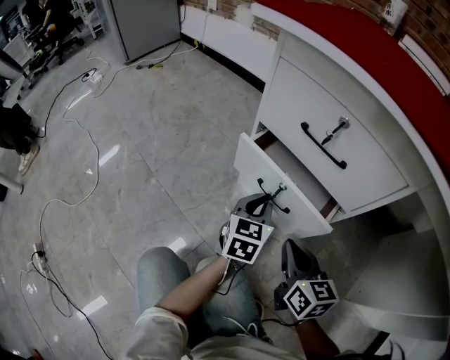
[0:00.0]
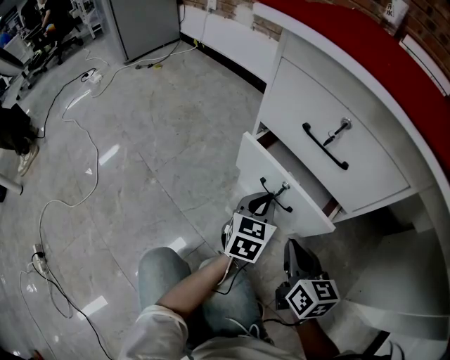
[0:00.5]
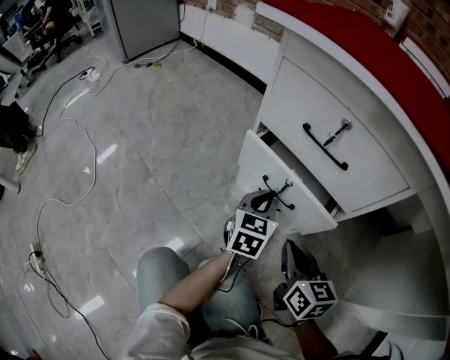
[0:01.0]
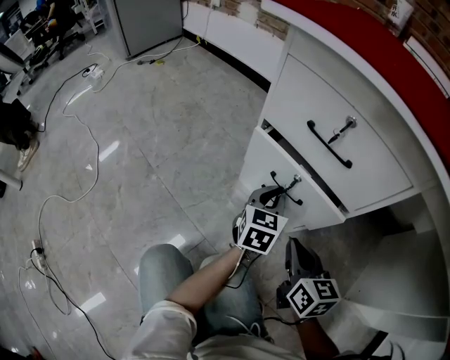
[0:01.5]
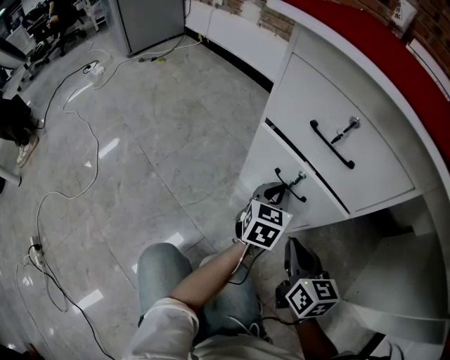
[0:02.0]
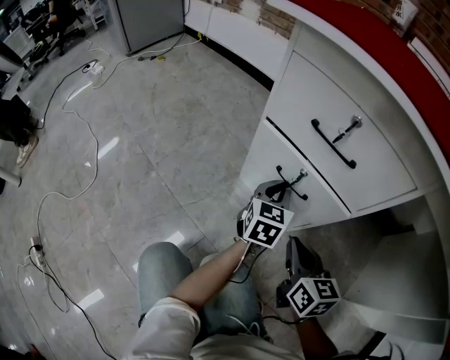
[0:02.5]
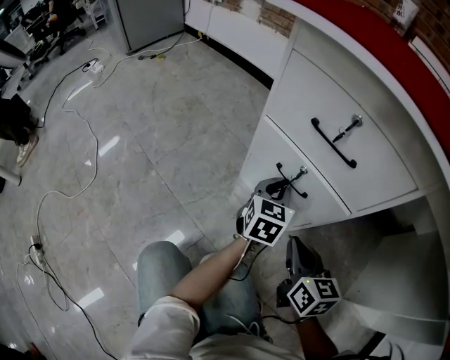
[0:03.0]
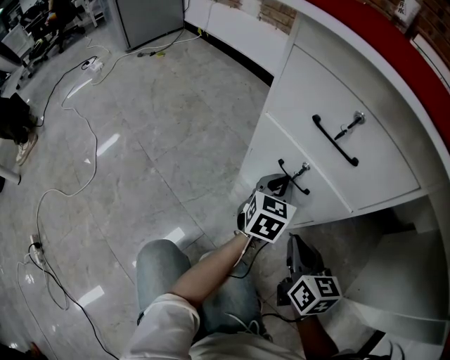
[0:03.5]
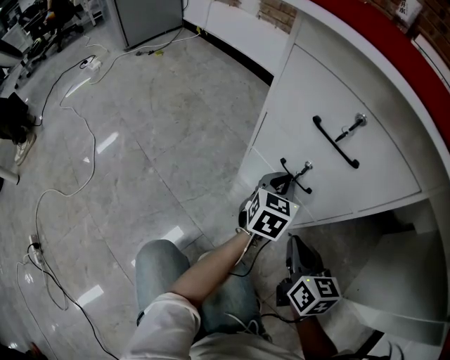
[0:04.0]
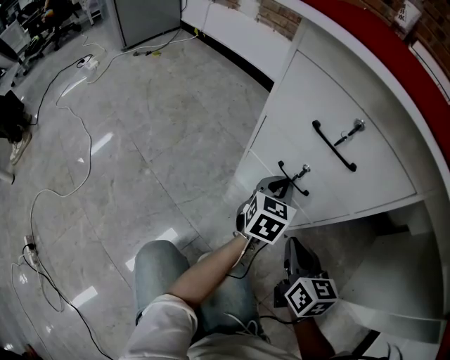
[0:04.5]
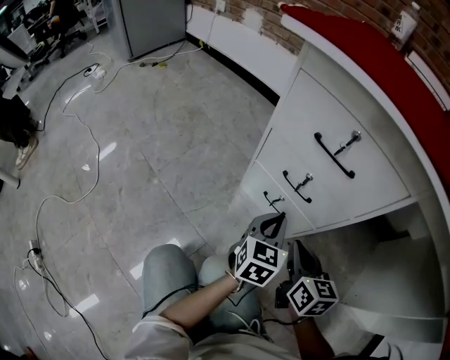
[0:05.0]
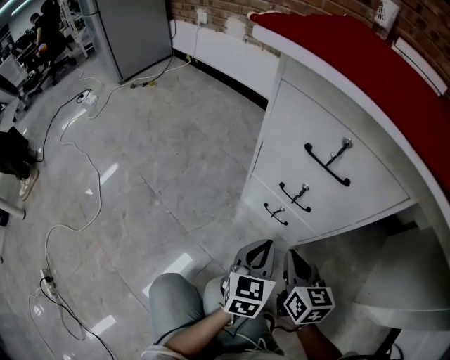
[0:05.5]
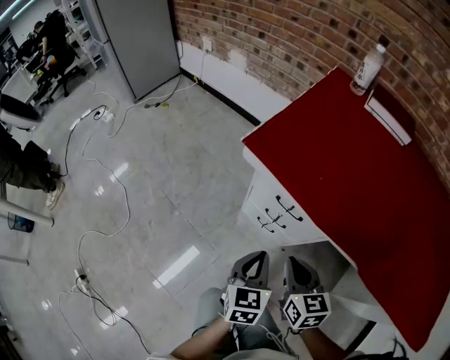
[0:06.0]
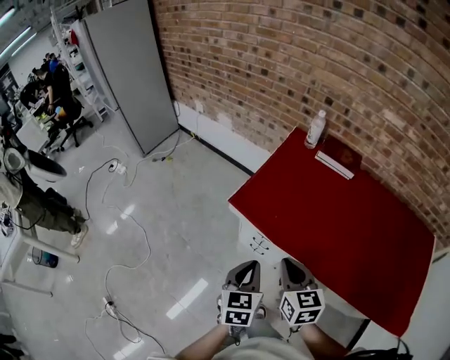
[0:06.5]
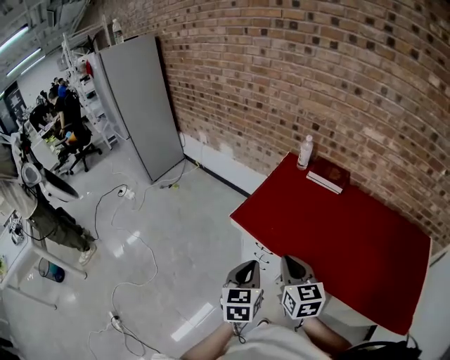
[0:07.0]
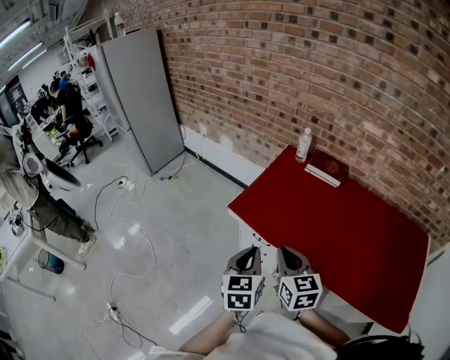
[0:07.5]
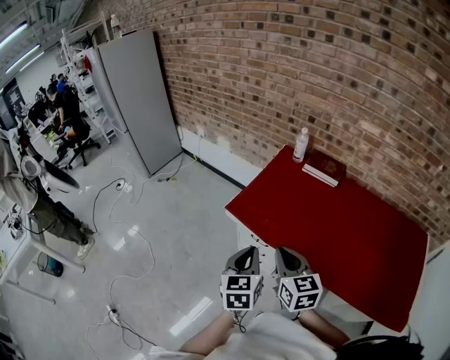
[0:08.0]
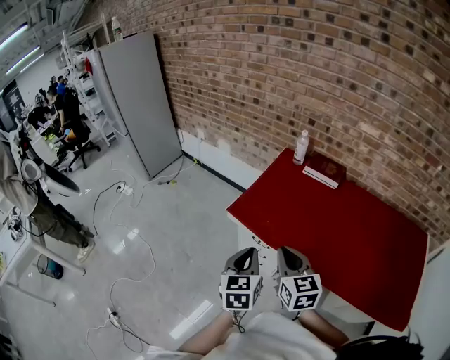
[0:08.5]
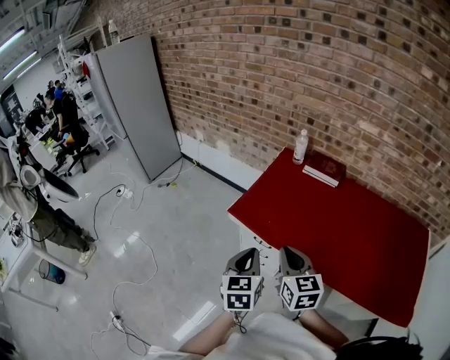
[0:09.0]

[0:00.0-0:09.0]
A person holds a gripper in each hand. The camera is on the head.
0:00.0 to 0:02.0: The grippers stay close to where they were, moving slightly.
0:02.0 to 0:04.5: The grippers move only a little.
0:04.5 to 0:07.0: Both grippers travel together upward, approximately 60 cm.
0:07.0 to 0:09.0: The grippers stay close to where they were, moving slightly.

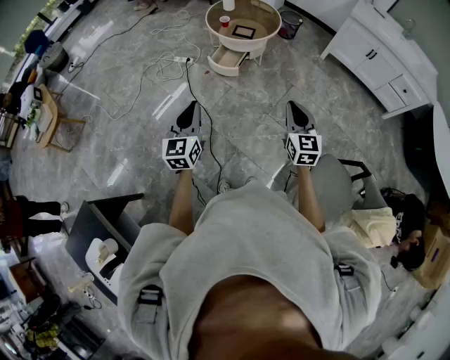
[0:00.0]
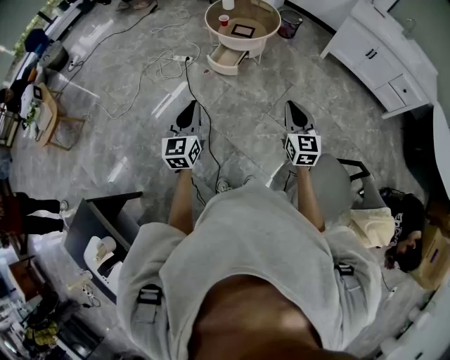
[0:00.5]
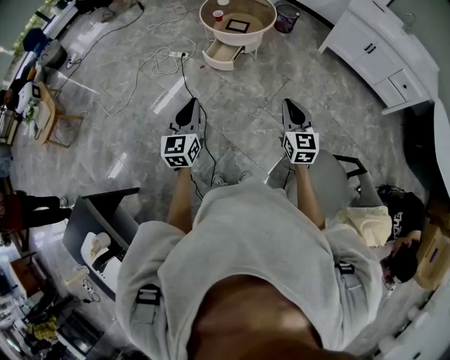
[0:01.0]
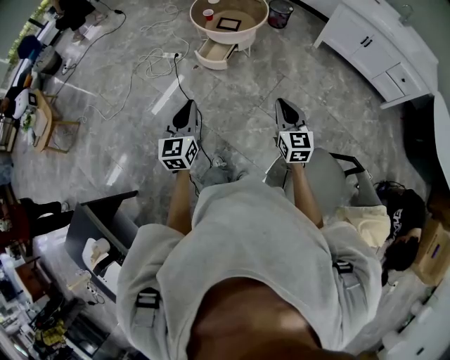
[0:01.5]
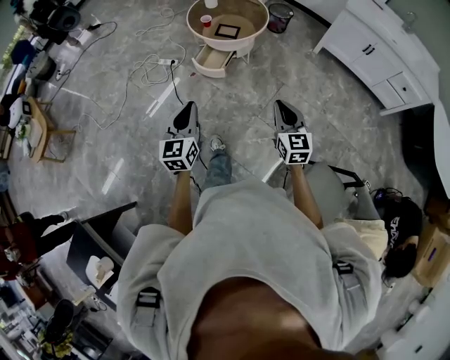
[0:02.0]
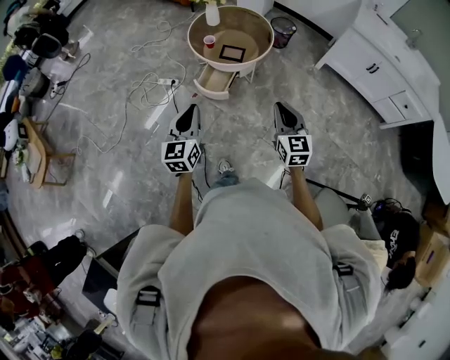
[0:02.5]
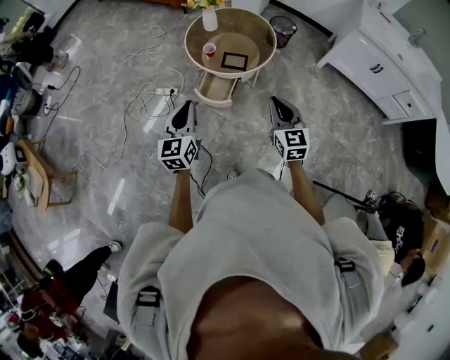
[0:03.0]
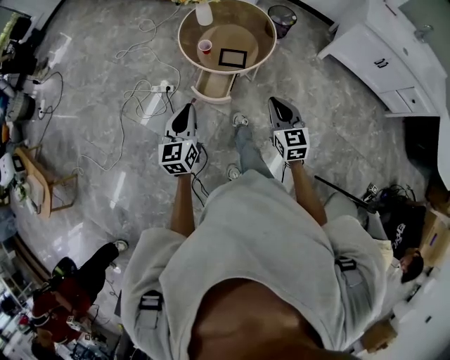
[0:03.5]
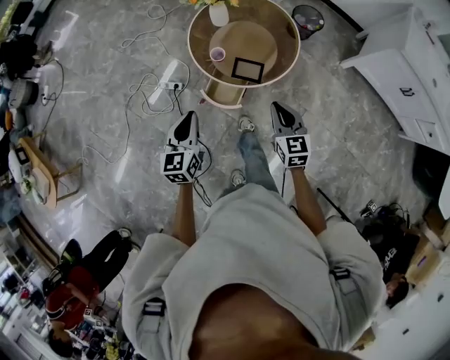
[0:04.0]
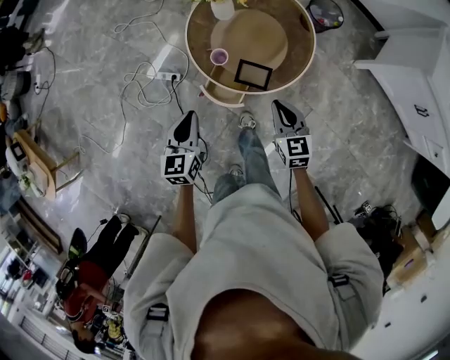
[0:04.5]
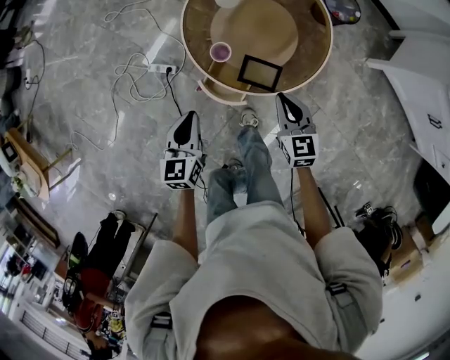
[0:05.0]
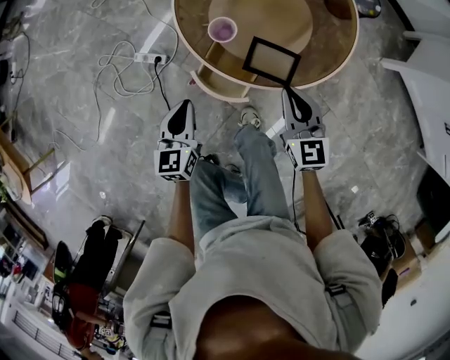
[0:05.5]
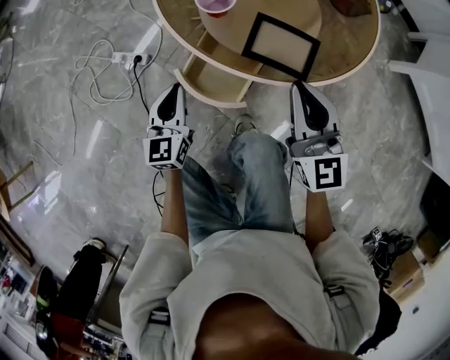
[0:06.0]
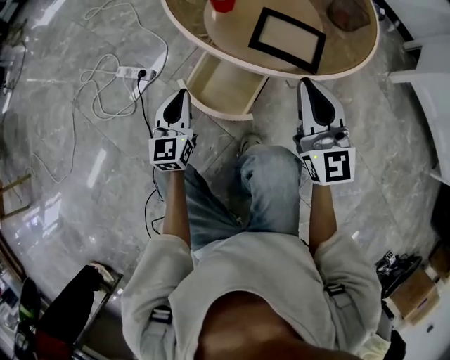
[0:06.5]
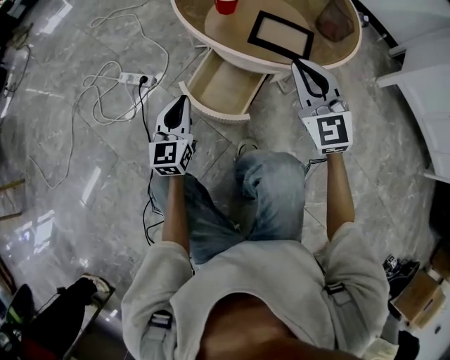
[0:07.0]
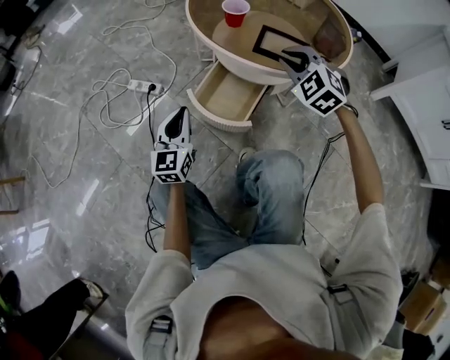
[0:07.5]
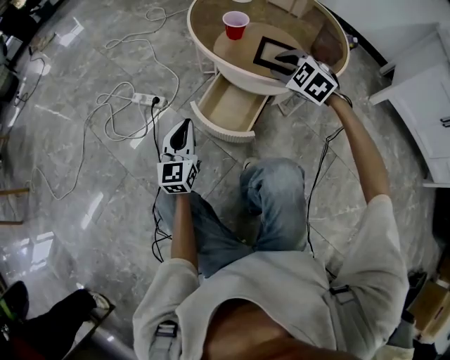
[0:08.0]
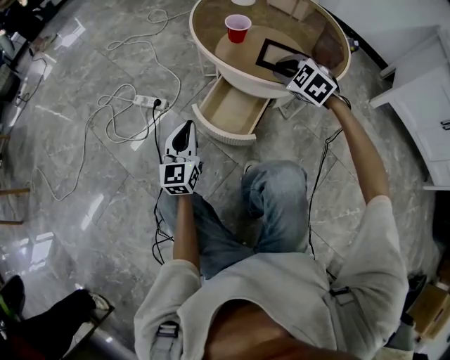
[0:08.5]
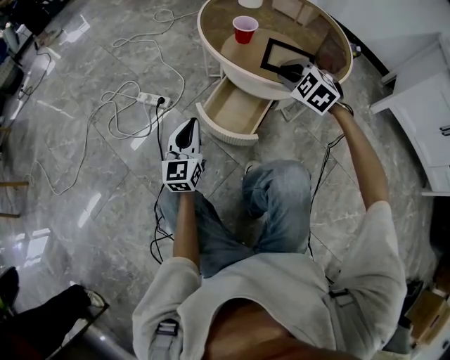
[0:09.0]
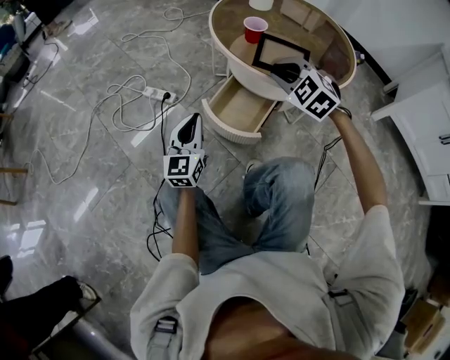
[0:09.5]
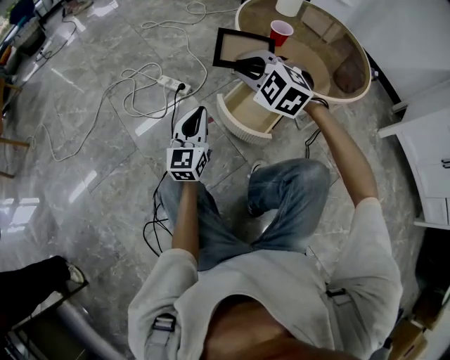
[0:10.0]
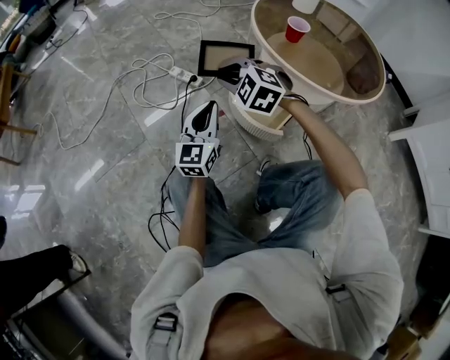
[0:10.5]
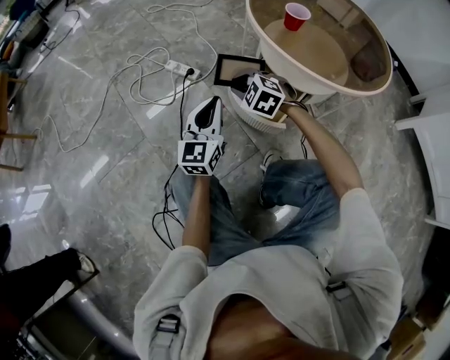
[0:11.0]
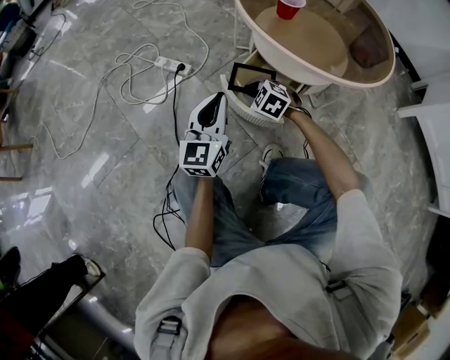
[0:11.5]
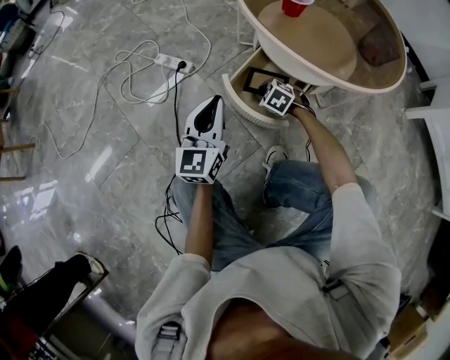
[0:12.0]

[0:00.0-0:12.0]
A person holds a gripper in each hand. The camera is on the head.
0:00.0 to 0:02.0: Both grippers move forward and to the right, some 15 cm.
0:02.0 to 0:04.0: The two grippers travel together, forward, about 60 cm.
0:04.0 to 0:06.0: The two grippers go some 40 cm downward. The right gripper turns by roughly 20 degrees.
0:06.0 to 0:08.0: The left gripper heads backward and to the left, covering roughly 10 cm; the right gripper moves downward, about 10 cm, angles its fingers downward, by about 40 degrees, and opens its fingers.
0:08.0 to 0:10.0: The left gripper goes some 5 cm to the left; the right gripper is displaced to the left by approximately 25 cm, and turns by some 30 degrees.
0:10.0 to 0:12.0: The left gripper travels to the right by roughly 5 cm; the right gripper is displaced downward by about 35 cm, and turns by approximately 40 degrees.

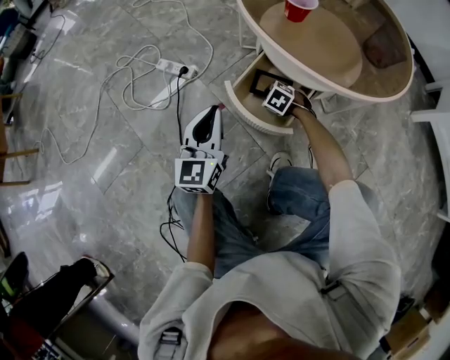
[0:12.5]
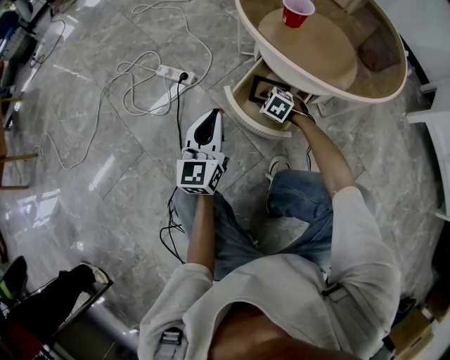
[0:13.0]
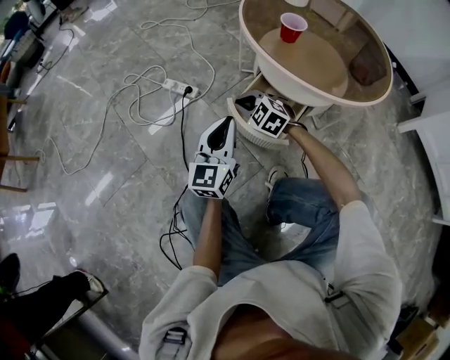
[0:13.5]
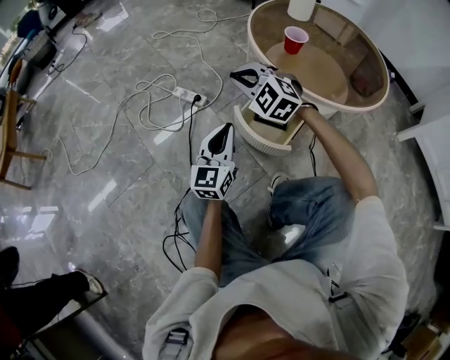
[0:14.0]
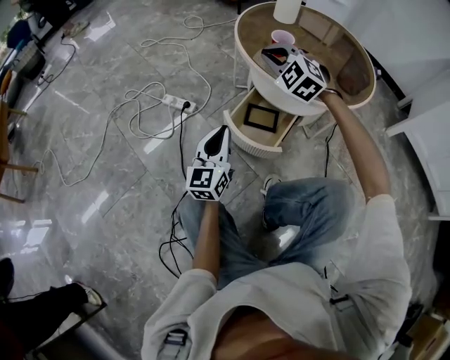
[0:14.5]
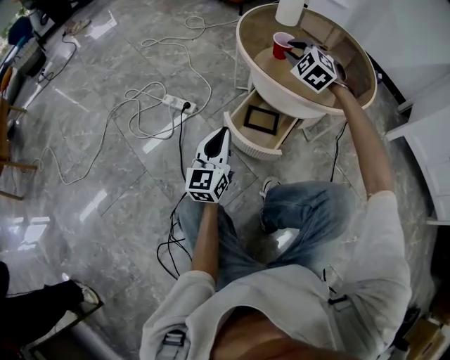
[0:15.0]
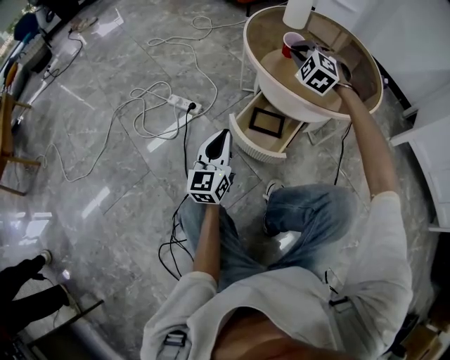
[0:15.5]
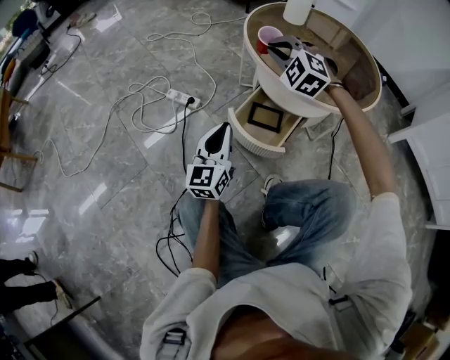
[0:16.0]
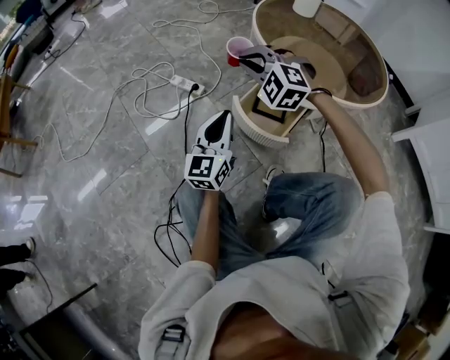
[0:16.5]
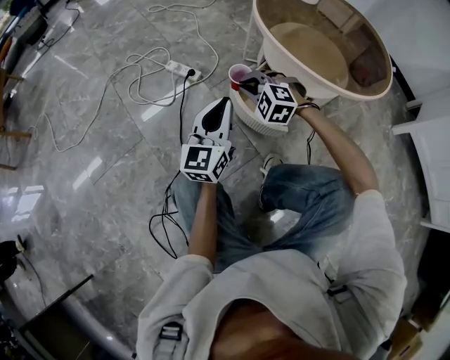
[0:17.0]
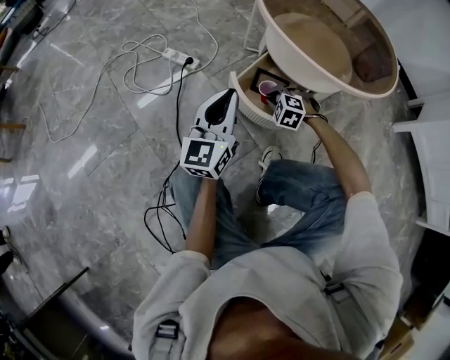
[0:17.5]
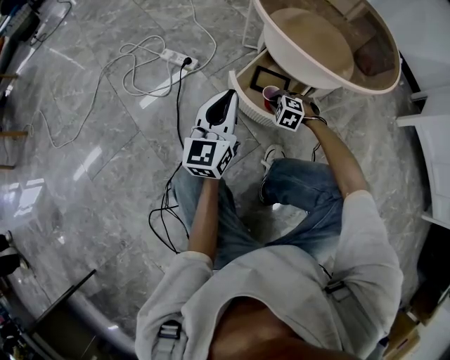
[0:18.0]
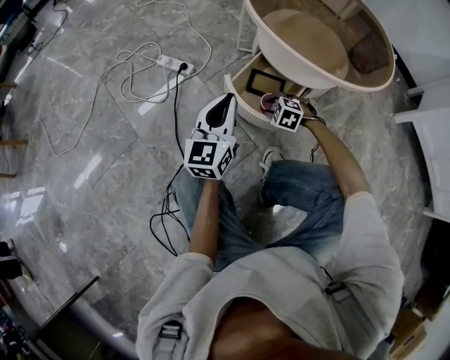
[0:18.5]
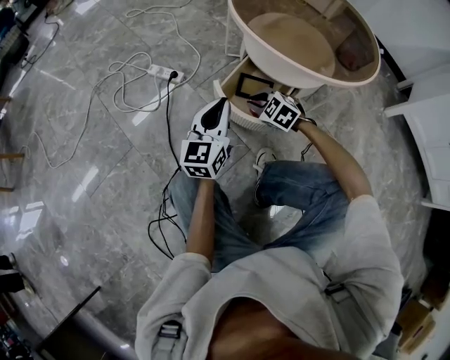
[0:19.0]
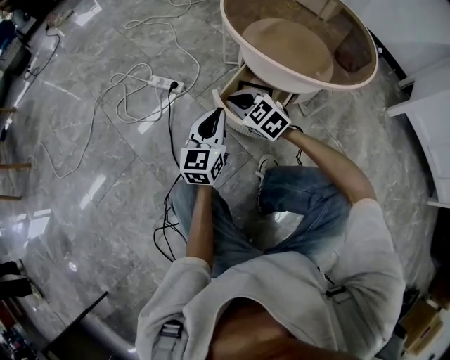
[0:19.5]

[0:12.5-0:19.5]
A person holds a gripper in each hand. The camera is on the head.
0:12.5 to 0:14.5: The left gripper moves approximately 5 cm; the right gripper travels upward by roughly 40 cm, and angles its fingers upward, by some 40 degrees.
0:14.5 to 0:16.0: The right gripper reaches approximately 10 cm to the right, then returns.
0:16.0 to 0:17.5: The right gripper travels downward by about 35 cm, and points its fingers roughly 30 degrees further downward.
0:17.5 to 0:19.5: The right gripper shifts about 15 cm upward and to the left, rotates about 40 degrees, and opens, then closes again, while the left gripper changes place by roughly 5 cm.
